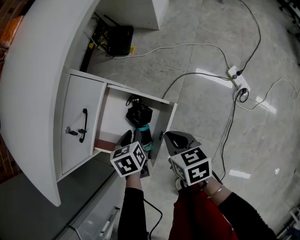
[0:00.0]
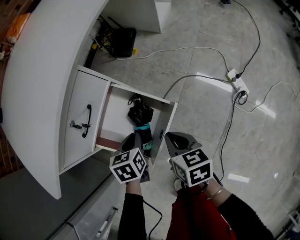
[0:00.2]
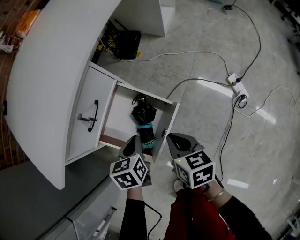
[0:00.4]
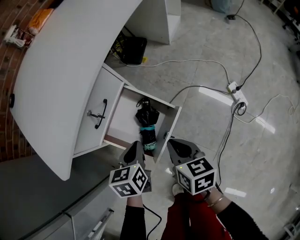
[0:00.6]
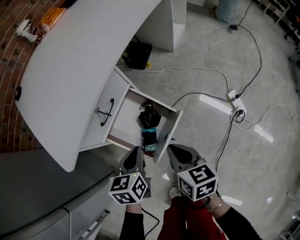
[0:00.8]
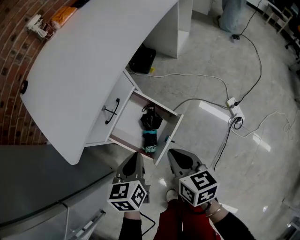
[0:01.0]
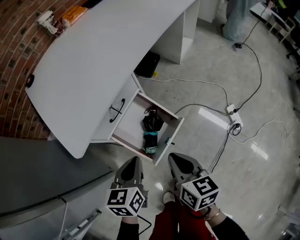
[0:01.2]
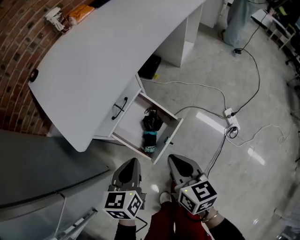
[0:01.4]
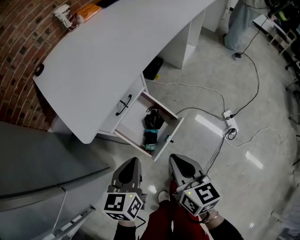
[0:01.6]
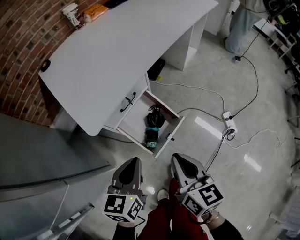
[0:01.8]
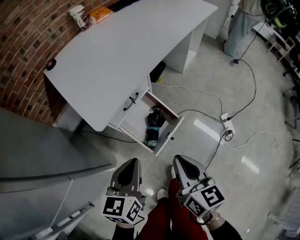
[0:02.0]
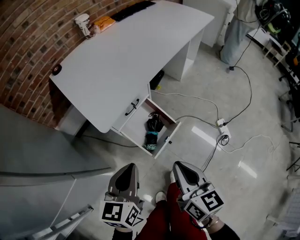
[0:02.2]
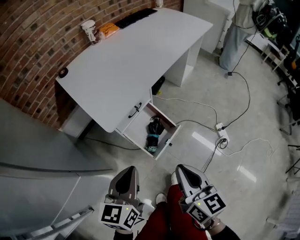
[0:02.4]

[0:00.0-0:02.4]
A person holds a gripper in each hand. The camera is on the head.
0:00.0 to 0:01.2: The left gripper shifts approximately 25 cm upward and backward, changes its angle by some 30 degrees, and closes its fingers. Meanwhile the right gripper moves upward, about 15 cm.
0:01.2 to 0:02.4: Both grippers travel together upward and backward, some 25 cm.

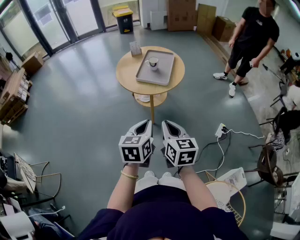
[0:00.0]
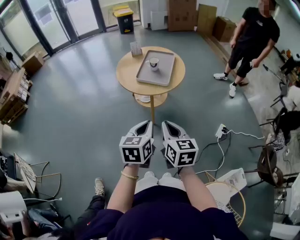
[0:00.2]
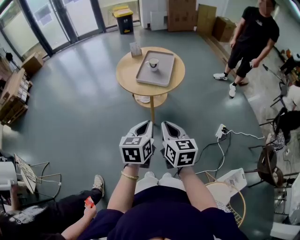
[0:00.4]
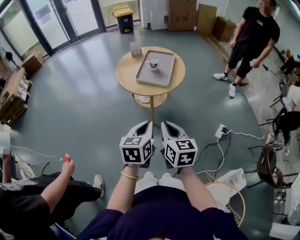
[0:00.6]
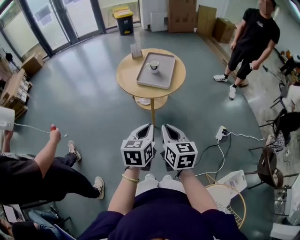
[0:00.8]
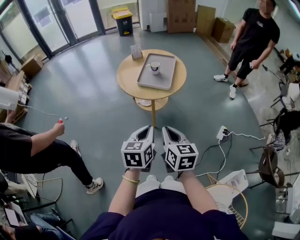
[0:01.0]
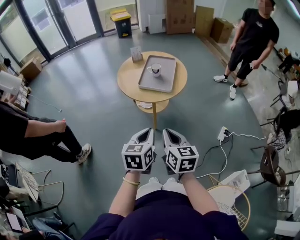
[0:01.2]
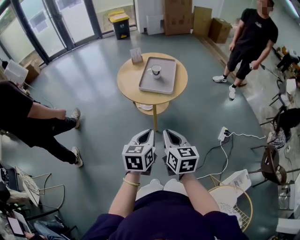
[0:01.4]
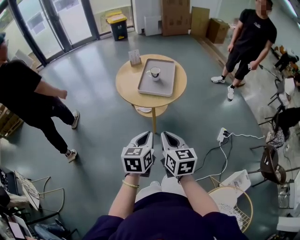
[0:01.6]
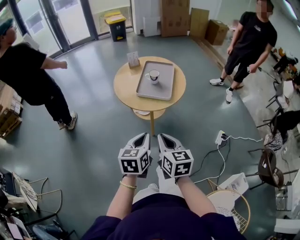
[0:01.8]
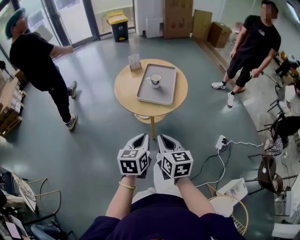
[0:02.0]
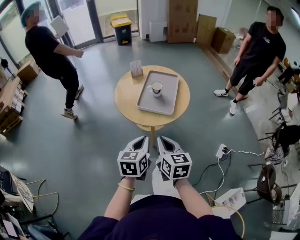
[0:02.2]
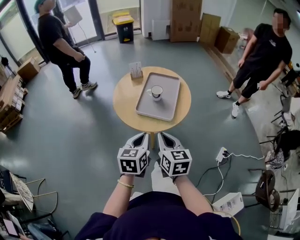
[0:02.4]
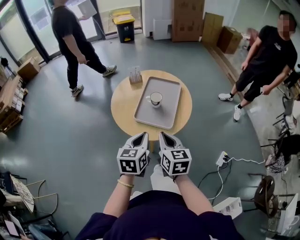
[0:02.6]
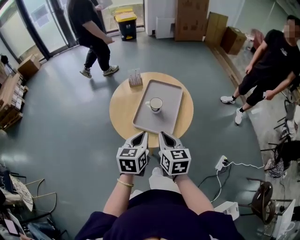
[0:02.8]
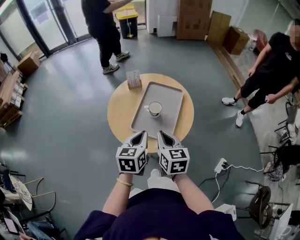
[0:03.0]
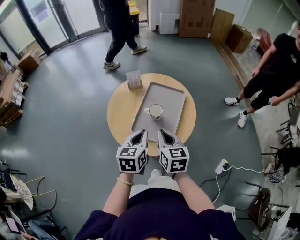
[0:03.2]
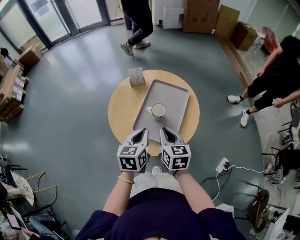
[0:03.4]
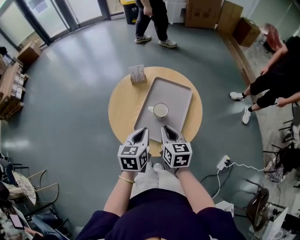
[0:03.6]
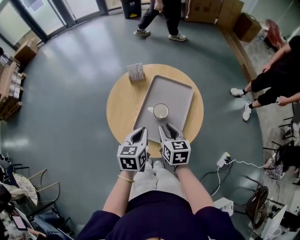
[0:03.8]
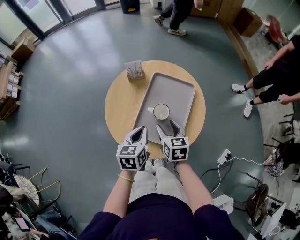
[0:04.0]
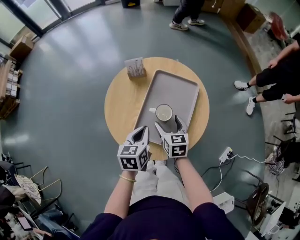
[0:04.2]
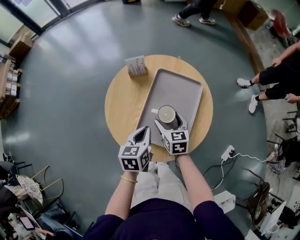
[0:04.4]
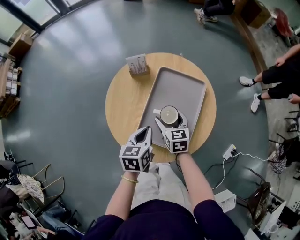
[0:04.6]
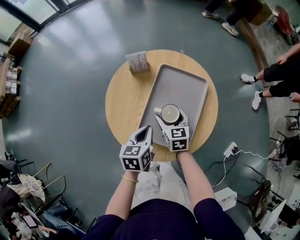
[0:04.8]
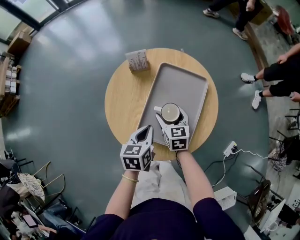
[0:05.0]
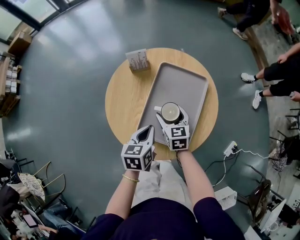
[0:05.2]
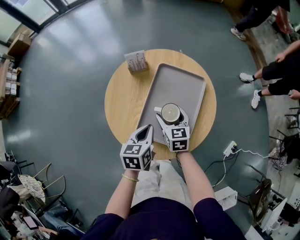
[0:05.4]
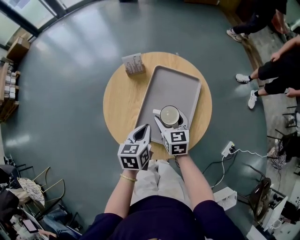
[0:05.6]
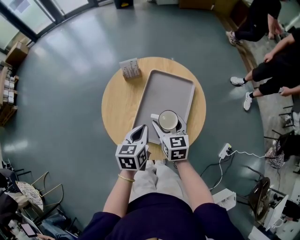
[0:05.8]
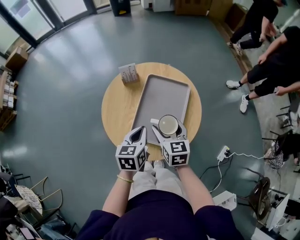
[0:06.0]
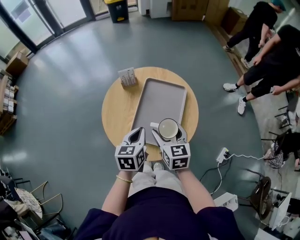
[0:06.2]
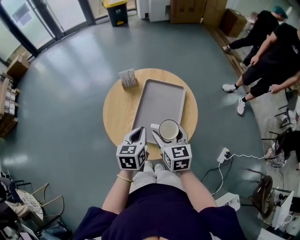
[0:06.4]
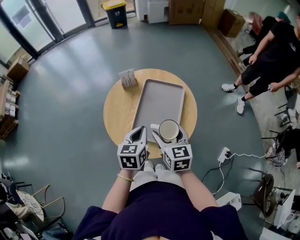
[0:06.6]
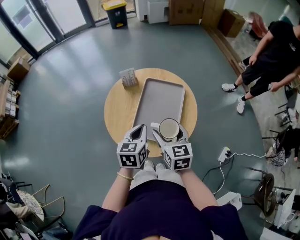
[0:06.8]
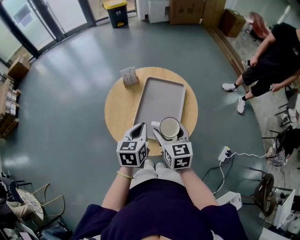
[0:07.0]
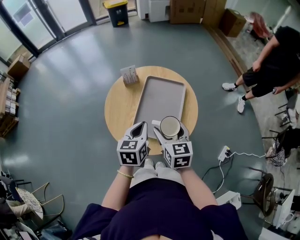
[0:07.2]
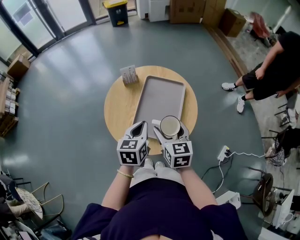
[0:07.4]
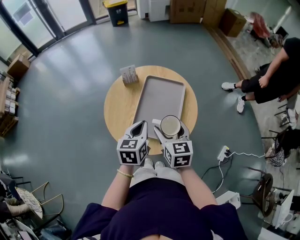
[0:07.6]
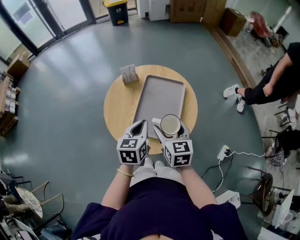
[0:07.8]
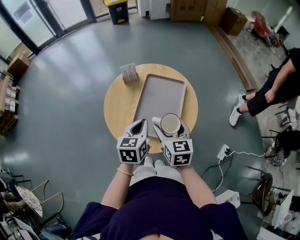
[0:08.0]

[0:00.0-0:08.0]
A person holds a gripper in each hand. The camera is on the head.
0:00.0 to 0:01.6: The left gripper moves some 5 cm. Meanwhile the right gripper heads to the left, covering roughly 5 cm.
0:01.6 to 0:03.2: The two grippers go approximately 35 cm forward.
0:03.2 to 0:04.8: The left gripper shifts approximately 15 cm downward and forward. The right gripper is displaced downward and forward by about 25 cm, and opens up.
0:04.8 to 0:06.4: The right gripper moves upward and backward, approximately 20 cm. The left gripper goes approximately 10 cm upward.
0:06.4 to 0:08.0: The grippers move only a little.

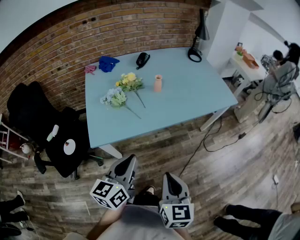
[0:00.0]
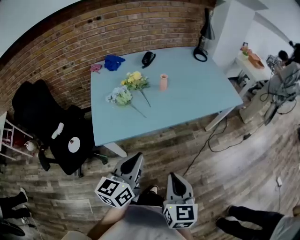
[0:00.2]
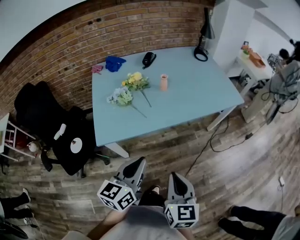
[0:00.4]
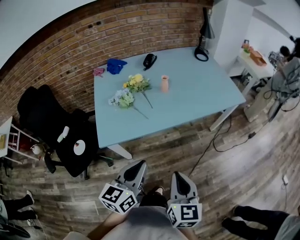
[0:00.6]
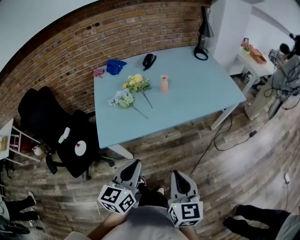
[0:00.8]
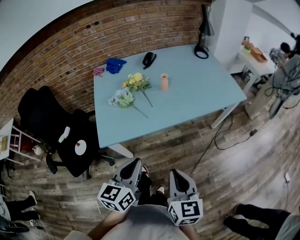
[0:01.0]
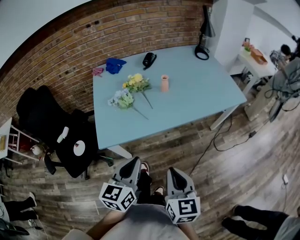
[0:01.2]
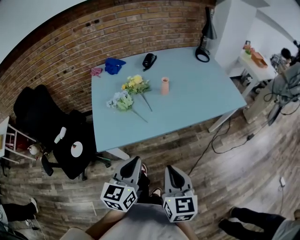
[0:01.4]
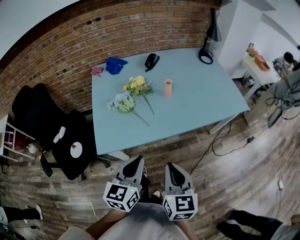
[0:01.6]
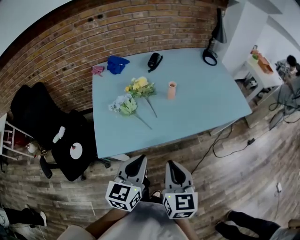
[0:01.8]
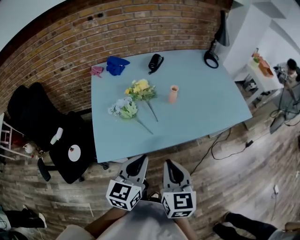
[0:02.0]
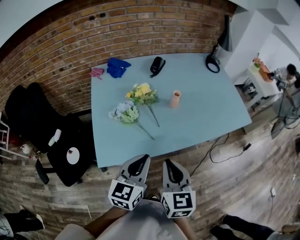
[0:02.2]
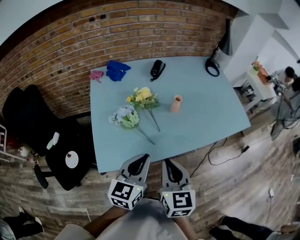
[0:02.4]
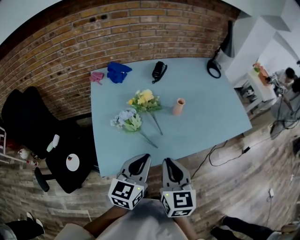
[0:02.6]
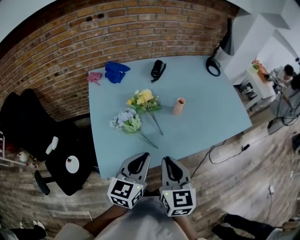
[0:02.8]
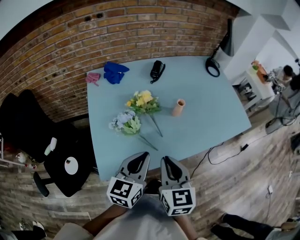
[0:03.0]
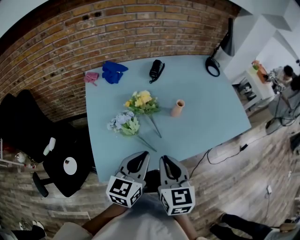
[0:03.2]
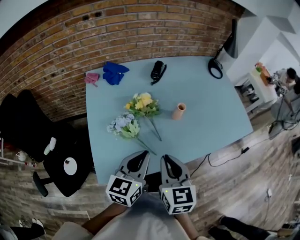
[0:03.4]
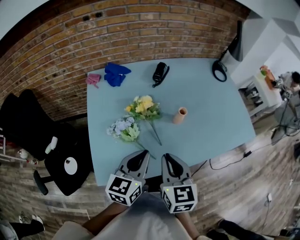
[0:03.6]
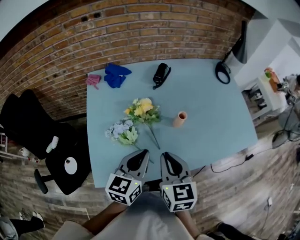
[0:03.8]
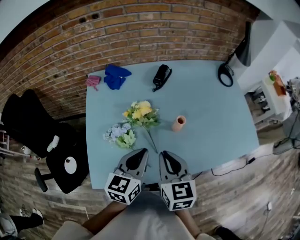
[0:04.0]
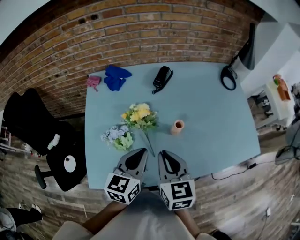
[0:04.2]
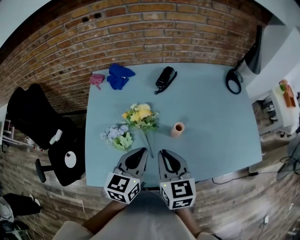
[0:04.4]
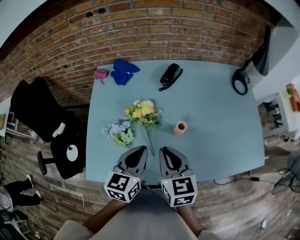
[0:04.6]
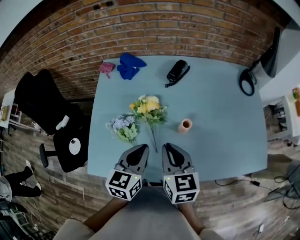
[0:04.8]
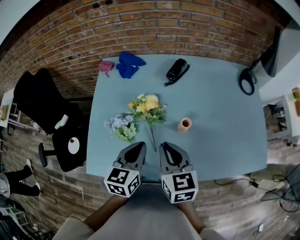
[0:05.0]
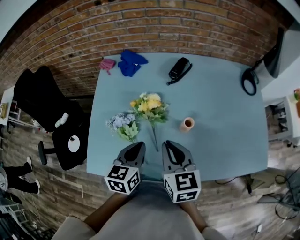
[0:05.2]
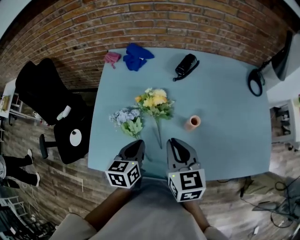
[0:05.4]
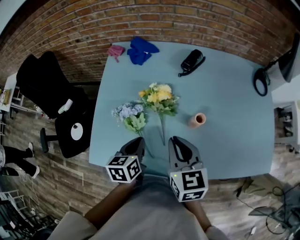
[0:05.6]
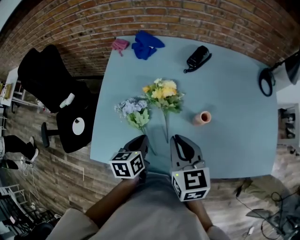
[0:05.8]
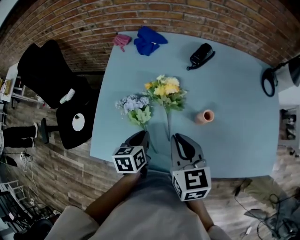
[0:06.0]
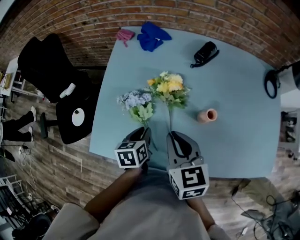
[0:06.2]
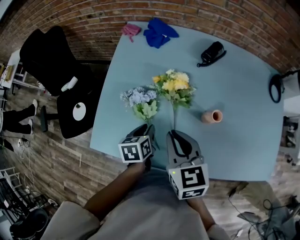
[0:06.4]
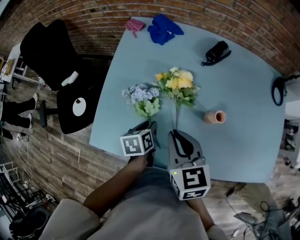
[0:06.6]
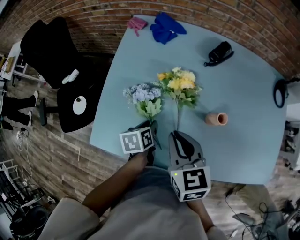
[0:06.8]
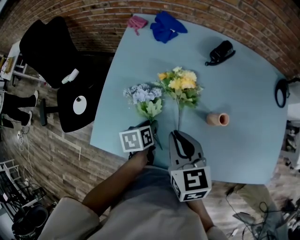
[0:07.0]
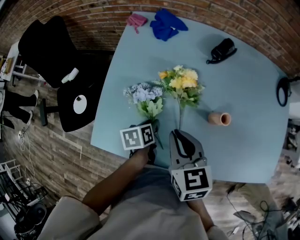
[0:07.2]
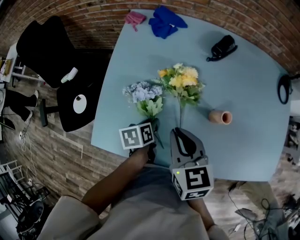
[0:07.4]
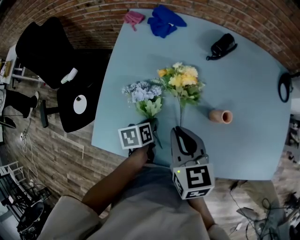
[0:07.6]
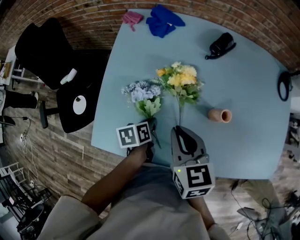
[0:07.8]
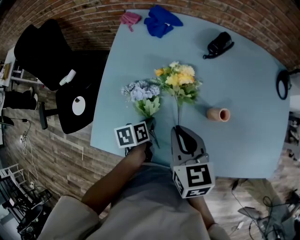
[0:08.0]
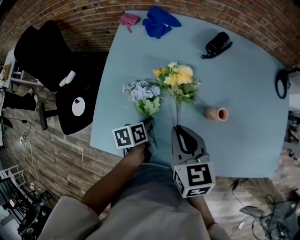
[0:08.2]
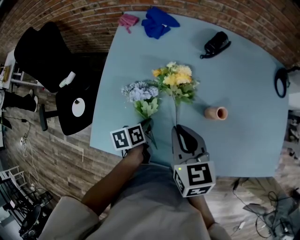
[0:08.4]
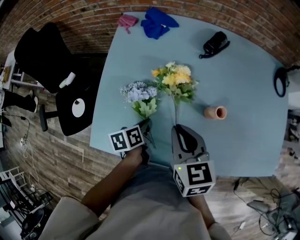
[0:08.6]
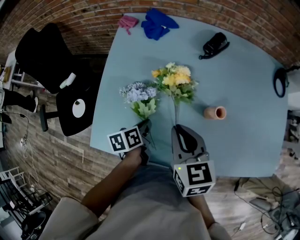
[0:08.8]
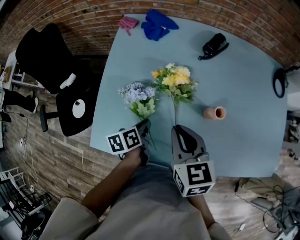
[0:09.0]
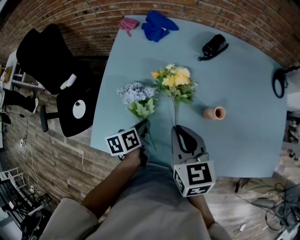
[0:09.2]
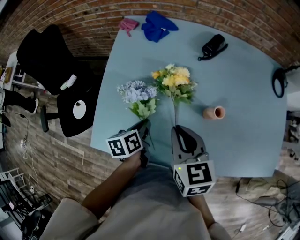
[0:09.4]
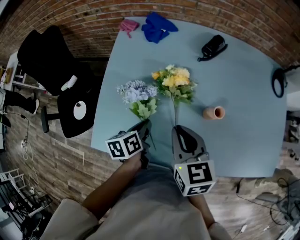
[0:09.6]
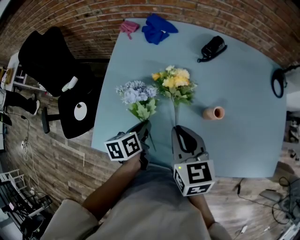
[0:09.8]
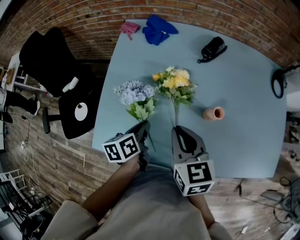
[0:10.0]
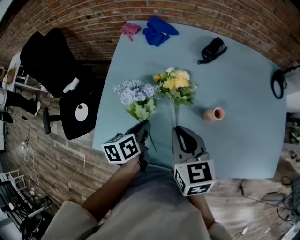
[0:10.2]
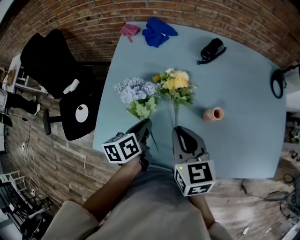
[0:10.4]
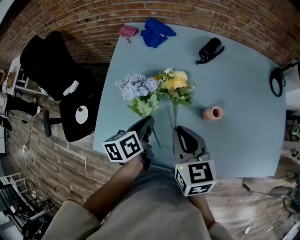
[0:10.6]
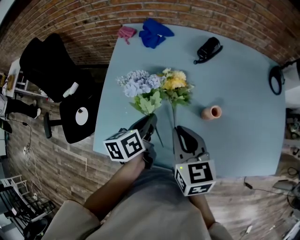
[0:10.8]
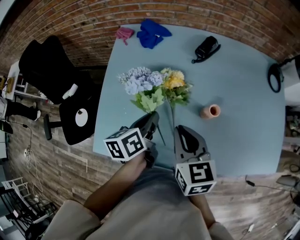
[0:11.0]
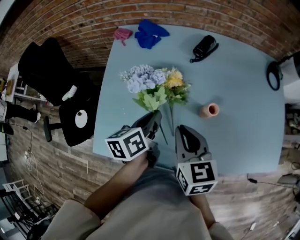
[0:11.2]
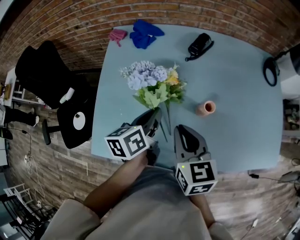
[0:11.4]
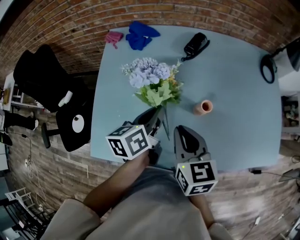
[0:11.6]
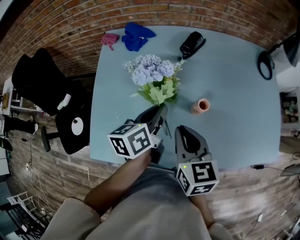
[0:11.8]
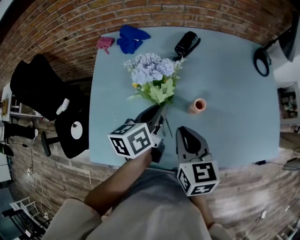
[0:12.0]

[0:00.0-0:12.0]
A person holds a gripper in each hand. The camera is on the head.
0:00.0 to 0:01.6: The right gripper moves forward, about 10 cm. Meanwhile the left gripper moves forward, approximately 5 cm.
0:01.6 to 0:03.0: Both grippers move forward and to the left, about 20 cm.
0:03.0 to 0:04.4: The left gripper shifts roughly 15 cm forward and to the right. Meanwhile the right gripper is displaced forward by about 15 cm.
0:04.4 to 0:06.0: The left gripper shifts roughly 20 cm downward and to the left, and changes its angle by roughly 40 degrees. Meanwhile the right gripper ends up approximately 5 cm from where it was.
0:06.0 to 0:07.6: The right gripper changes place by approximately 5 cm; the left gripper is displaced downward by about 10 cm, and turns by some 20 degrees.
0:07.6 to 0:09.0: The grippers make only small movements.
0:09.0 to 0:10.4: The left gripper shifts about 10 cm upward.
0:10.4 to 0:12.0: The left gripper moves to the right, upward and forward, about 15 cm, and swivels about 20 degrees, while the right gripper goes some 5 cm to the right.

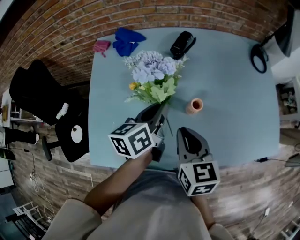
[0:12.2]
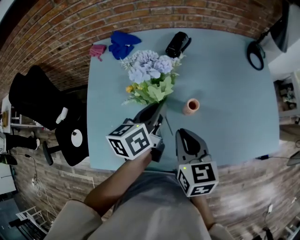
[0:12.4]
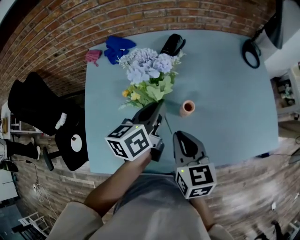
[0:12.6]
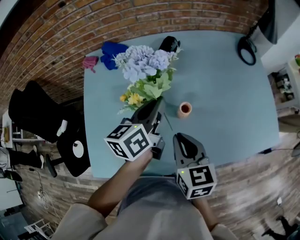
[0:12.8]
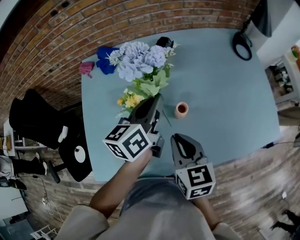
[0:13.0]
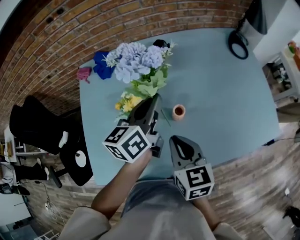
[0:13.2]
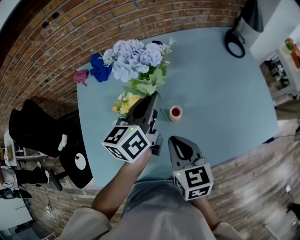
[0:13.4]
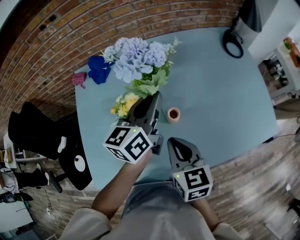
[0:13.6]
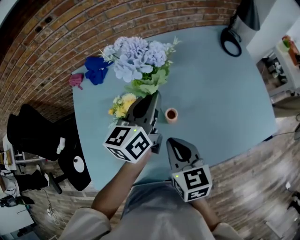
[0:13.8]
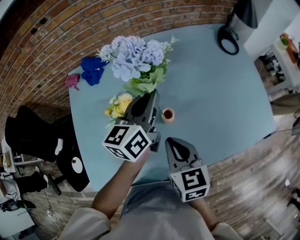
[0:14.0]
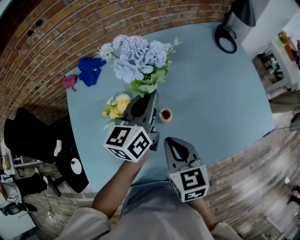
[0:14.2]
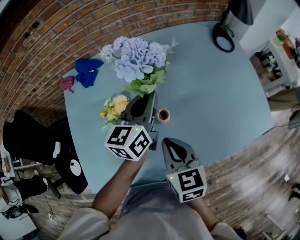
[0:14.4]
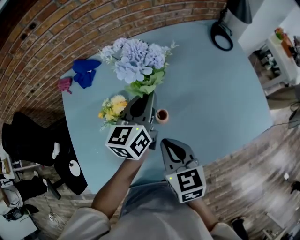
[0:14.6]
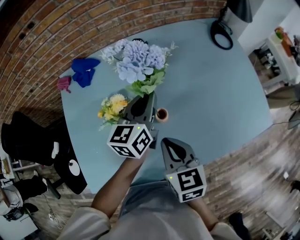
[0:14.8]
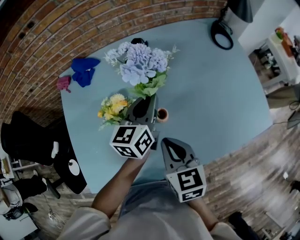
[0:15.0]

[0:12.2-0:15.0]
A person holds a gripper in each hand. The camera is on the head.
0:12.2 to 0:13.6: The left gripper is displaced to the right, upward and forward by some 15 cm, and swivels approximately 20 degrees.
0:13.6 to 0:15.0: The left gripper goes roughly 5 cm downward.
